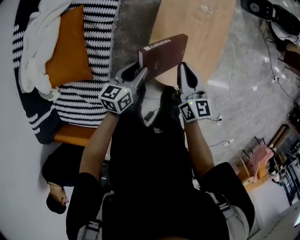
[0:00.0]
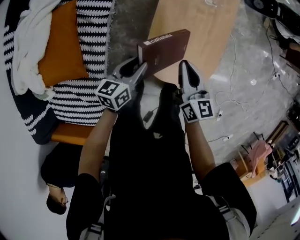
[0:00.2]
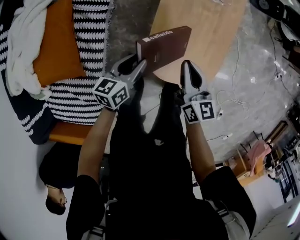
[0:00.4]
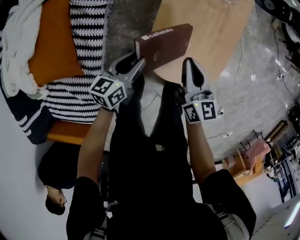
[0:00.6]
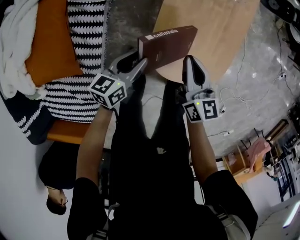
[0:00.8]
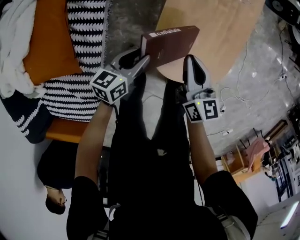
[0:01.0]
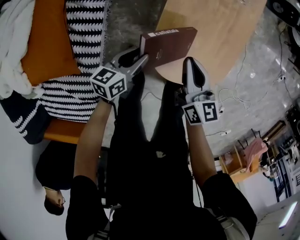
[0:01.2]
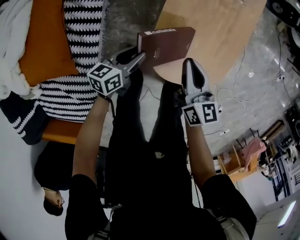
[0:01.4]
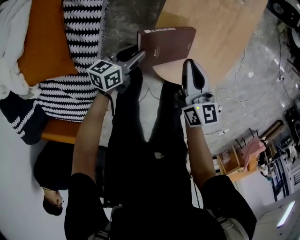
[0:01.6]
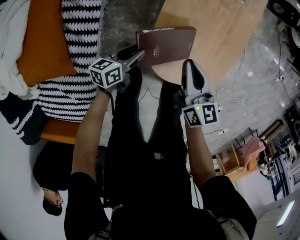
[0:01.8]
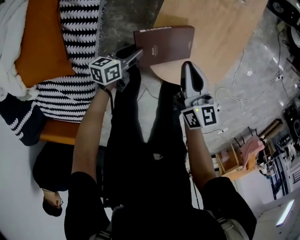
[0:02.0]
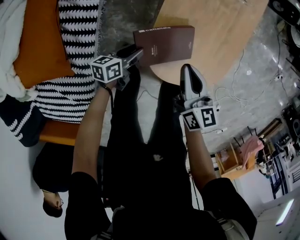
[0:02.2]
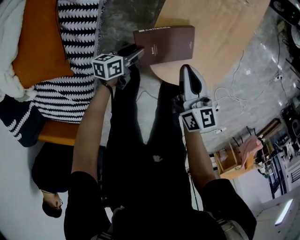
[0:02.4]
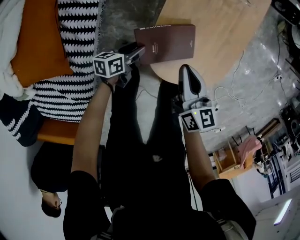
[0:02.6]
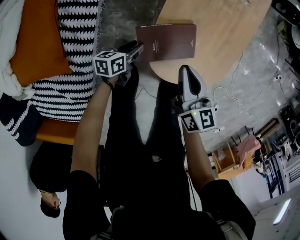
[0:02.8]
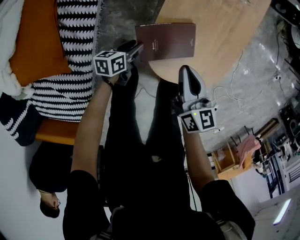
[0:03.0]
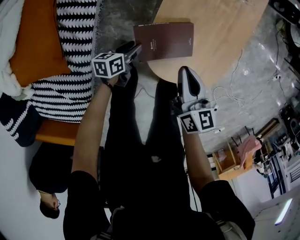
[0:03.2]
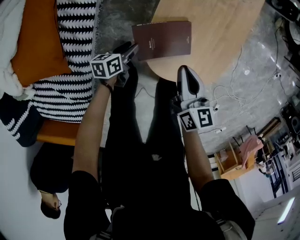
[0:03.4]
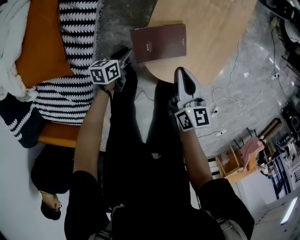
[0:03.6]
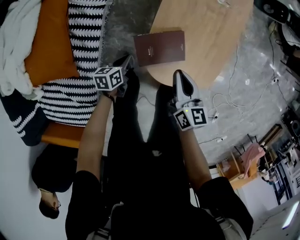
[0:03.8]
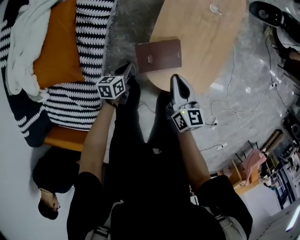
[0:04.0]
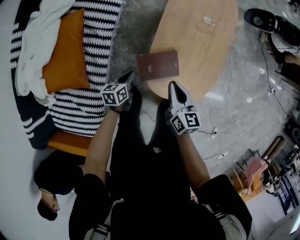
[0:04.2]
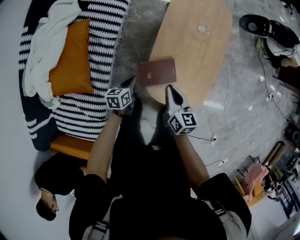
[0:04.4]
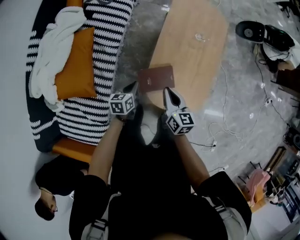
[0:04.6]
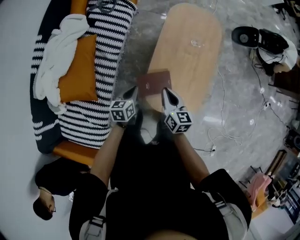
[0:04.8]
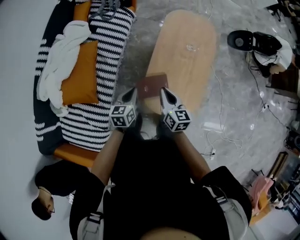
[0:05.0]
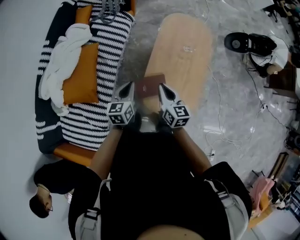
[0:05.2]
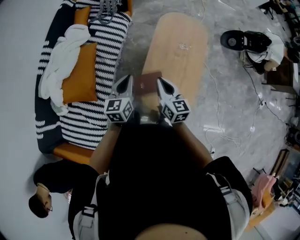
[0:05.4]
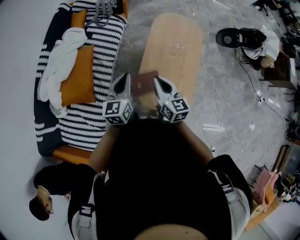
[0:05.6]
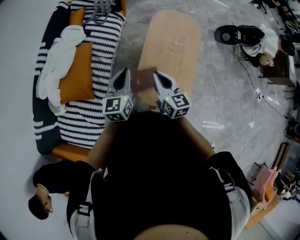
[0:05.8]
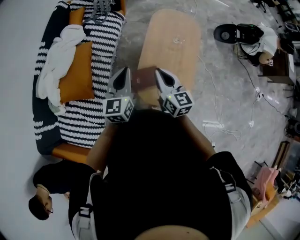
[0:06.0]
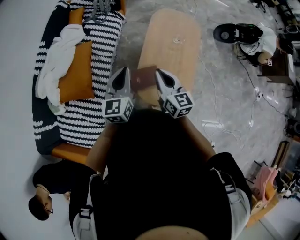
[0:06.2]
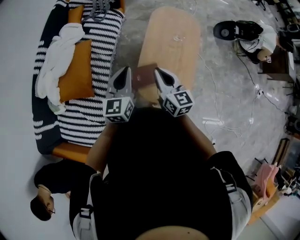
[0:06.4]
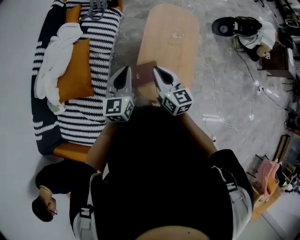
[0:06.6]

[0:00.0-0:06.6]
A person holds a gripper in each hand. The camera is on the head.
0:00.0 to 0:01.6: The two grippers go approximately 20 cm downward.
0:01.6 to 0:03.2: The right gripper travels backward by roughly 5 cm, while the left gripper goes some 10 cm downward.
0:03.2 to 0:05.0: The left gripper is displaced upward by about 40 cm, rotates some 40 degrees, and closes; the right gripper moves upward, approximately 20 cm.
0:05.0 to 0:06.6: The grippers both shift upward by about 15 cm. The left gripper rotates roughly 30 degrees.

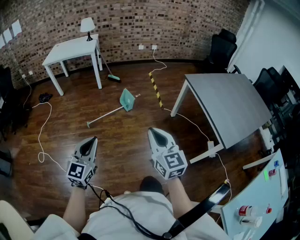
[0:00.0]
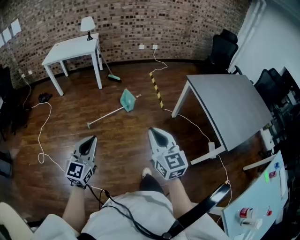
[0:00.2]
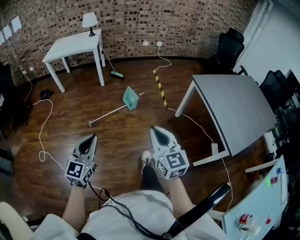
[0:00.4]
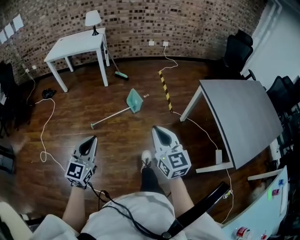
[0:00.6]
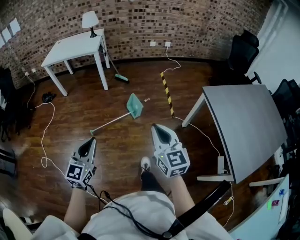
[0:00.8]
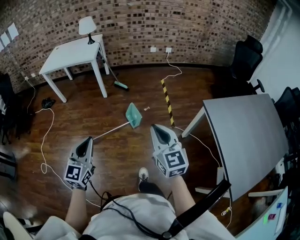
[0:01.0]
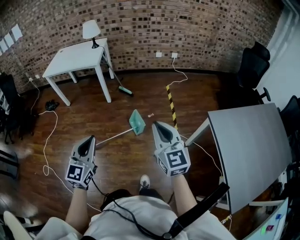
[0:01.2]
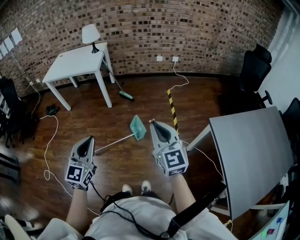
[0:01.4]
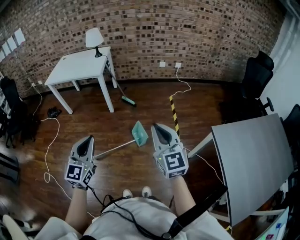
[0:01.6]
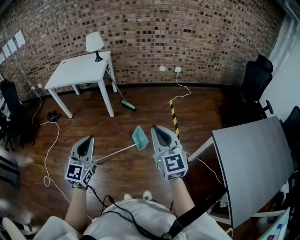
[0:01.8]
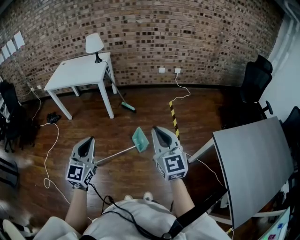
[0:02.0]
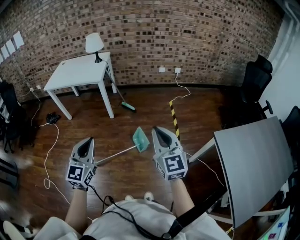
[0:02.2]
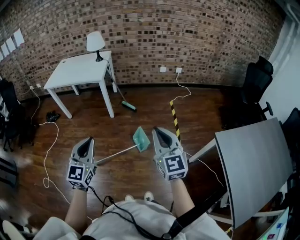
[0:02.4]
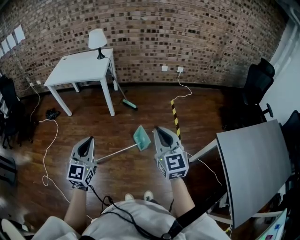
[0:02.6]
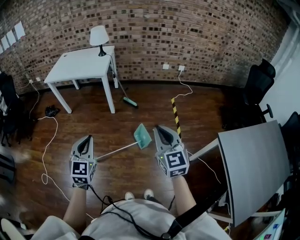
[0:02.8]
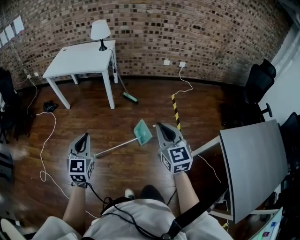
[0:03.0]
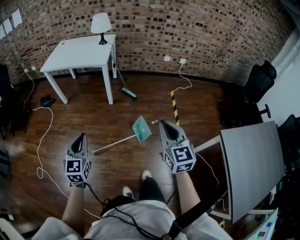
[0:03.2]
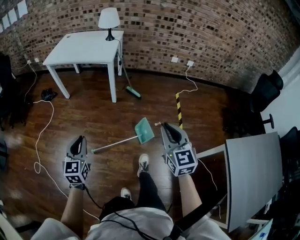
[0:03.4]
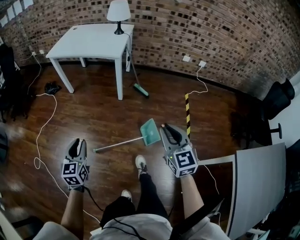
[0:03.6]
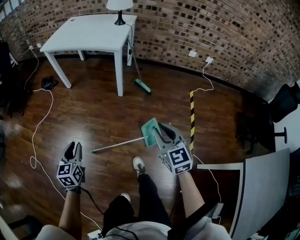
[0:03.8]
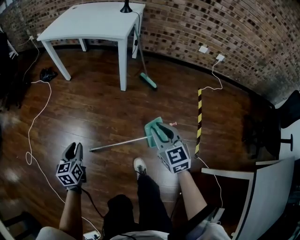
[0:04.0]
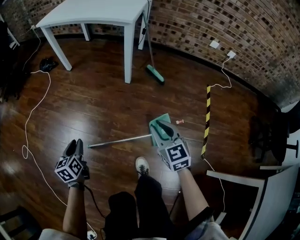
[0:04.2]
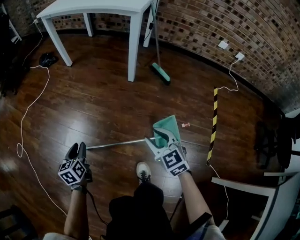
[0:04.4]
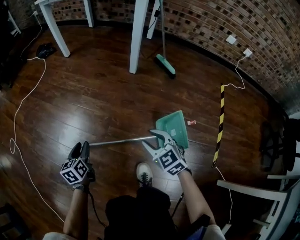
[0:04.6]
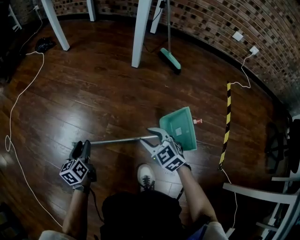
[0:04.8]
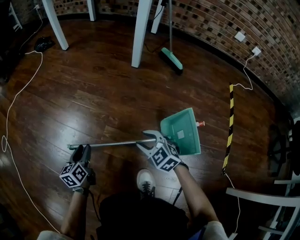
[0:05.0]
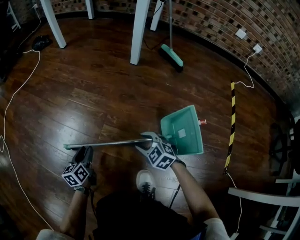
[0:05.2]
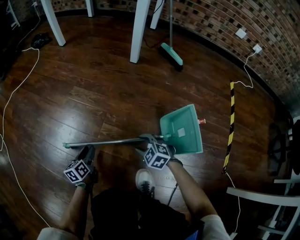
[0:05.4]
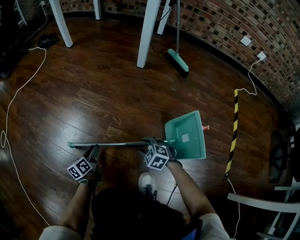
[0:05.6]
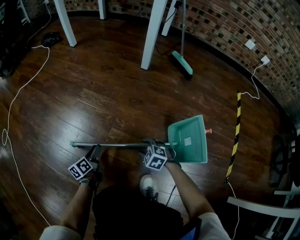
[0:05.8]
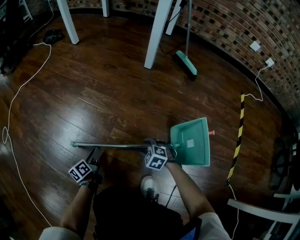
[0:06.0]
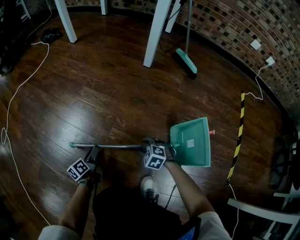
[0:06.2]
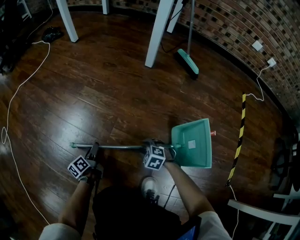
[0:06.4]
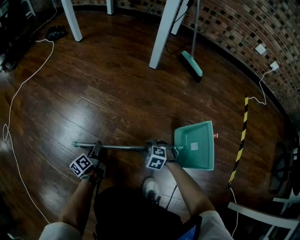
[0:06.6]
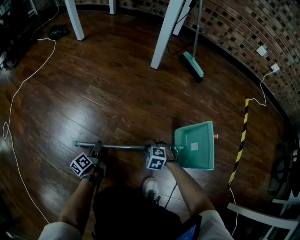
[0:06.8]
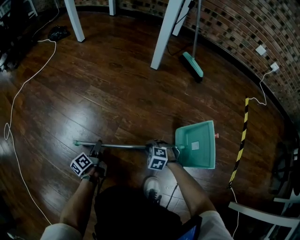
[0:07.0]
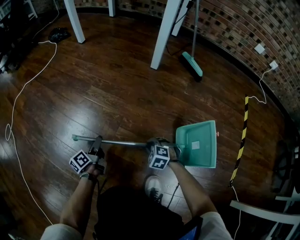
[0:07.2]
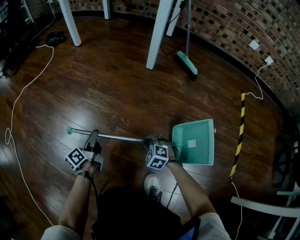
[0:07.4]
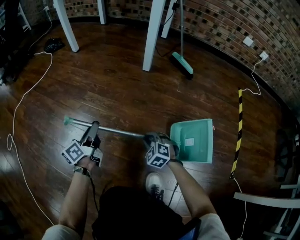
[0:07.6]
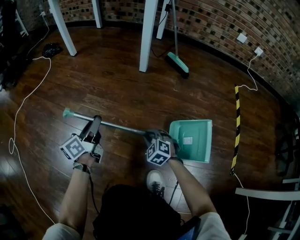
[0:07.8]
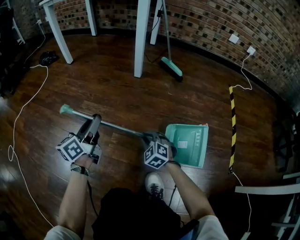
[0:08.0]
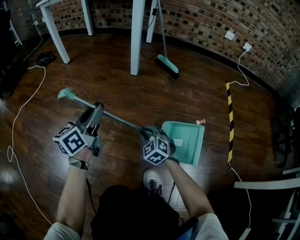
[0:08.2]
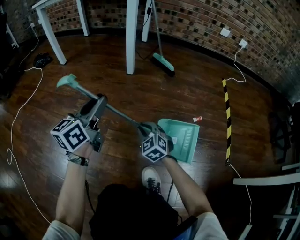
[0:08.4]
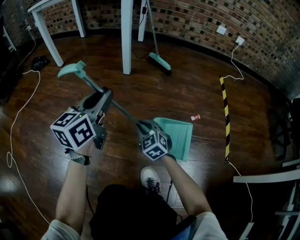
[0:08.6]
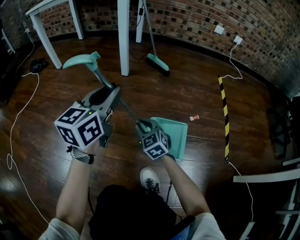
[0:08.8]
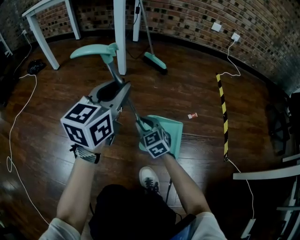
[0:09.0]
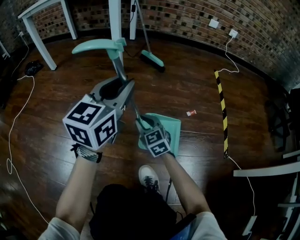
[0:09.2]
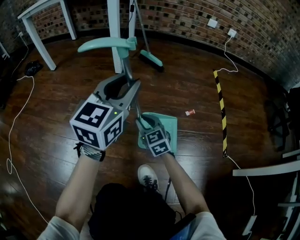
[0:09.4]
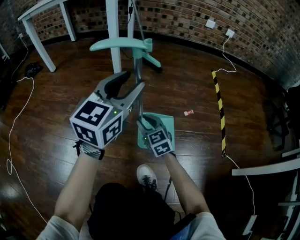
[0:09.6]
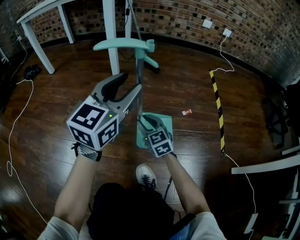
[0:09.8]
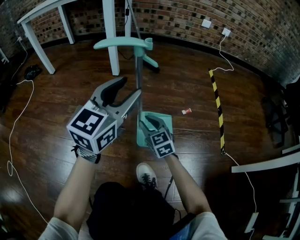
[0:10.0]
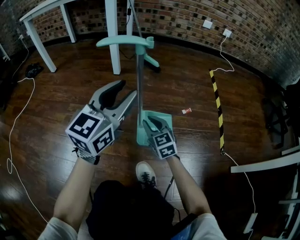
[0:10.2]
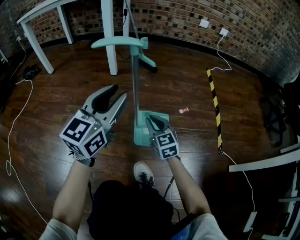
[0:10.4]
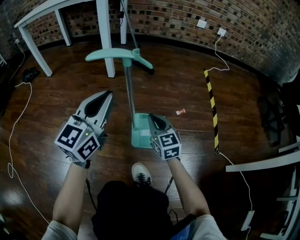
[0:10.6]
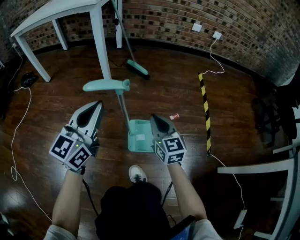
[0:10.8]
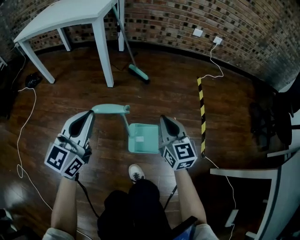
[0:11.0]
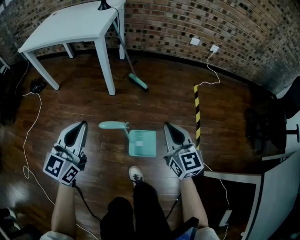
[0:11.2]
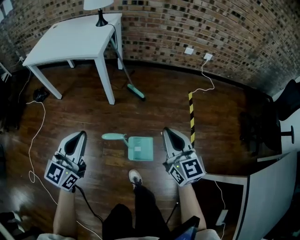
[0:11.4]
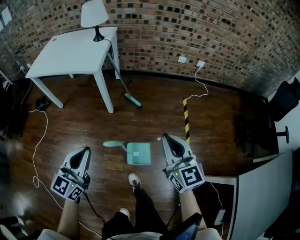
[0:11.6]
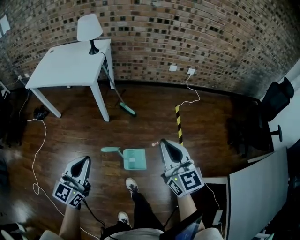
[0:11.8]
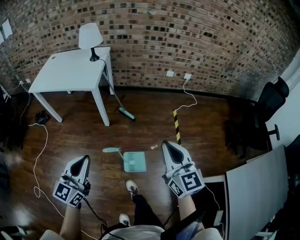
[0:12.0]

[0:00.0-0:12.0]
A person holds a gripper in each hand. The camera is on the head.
0:00.0 to 0:01.6: The pair of grippers is taken forward, roughly 50 cm.
0:01.6 to 0:03.0: The right gripper is displaced to the left and forward by about 10 cm; the left gripper travels to the left, forward and downward by approximately 15 cm.
0:03.0 to 0:04.4: The grippers both shift downward by roughly 60 cm. The left gripper rolls counterclockwise, seen from behind, by about 40 degrees, and opens. Meanwhile the right gripper turns by about 40 degrees, and opens its fingers.
0:04.4 to 0:06.0: The two grippers go some 40 cm downward. The left gripper swivels roughly 40 degrees. Meanwhile the right gripper points its fingers some 30 degrees further downward.
0:06.0 to 0:07.6: The left gripper shifts roughly 20 cm upward and forward, changes its angle by roughly 30 degrees, and closes; the right gripper travels upward by roughly 5 cm, and closes.
0:07.6 to 0:09.0: The left gripper shifts some 35 cm upward and to the right, and rotates around the line of its fingers by about 50 degrees, clockwise from behind, while the right gripper moves upward and to the right, about 15 cm, and swivels about 40 degrees.
0:09.0 to 0:10.4: The left gripper heads backward, covering about 5 cm. Meanwhile the right gripper goes roughly 10 cm to the right.
0:10.4 to 0:12.0: The left gripper is displaced upward by about 50 cm, and closes up, while the right gripper is displaced upward by about 80 cm, and swivels roughly 20 degrees.

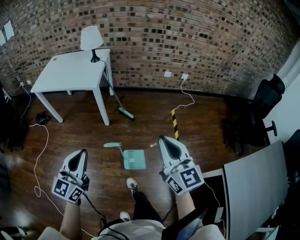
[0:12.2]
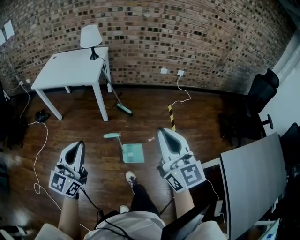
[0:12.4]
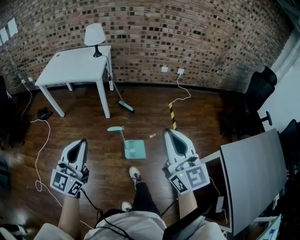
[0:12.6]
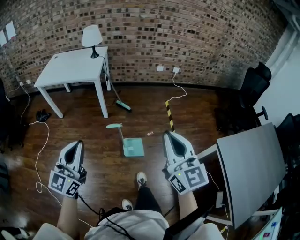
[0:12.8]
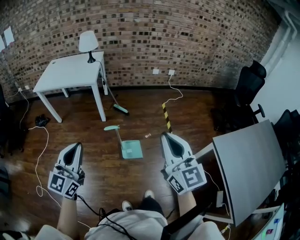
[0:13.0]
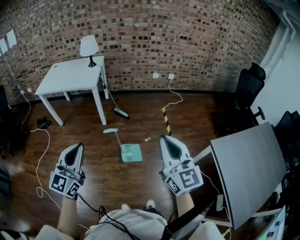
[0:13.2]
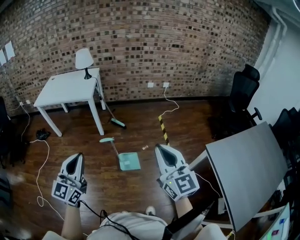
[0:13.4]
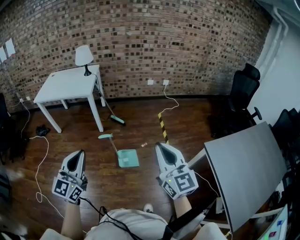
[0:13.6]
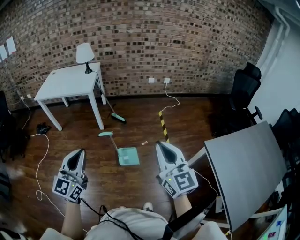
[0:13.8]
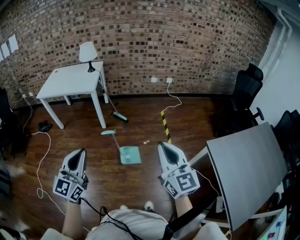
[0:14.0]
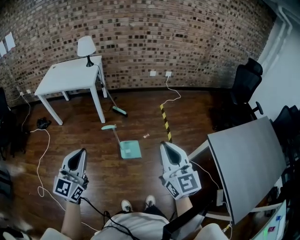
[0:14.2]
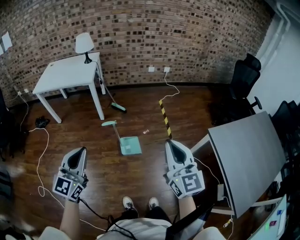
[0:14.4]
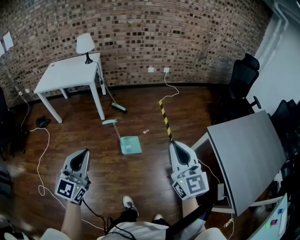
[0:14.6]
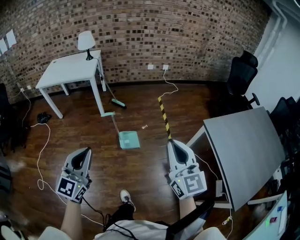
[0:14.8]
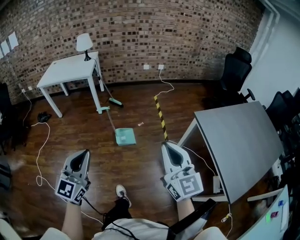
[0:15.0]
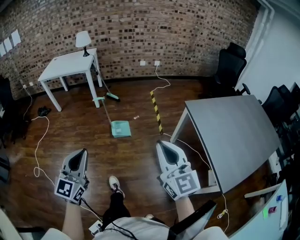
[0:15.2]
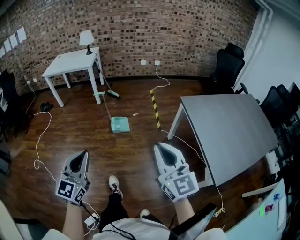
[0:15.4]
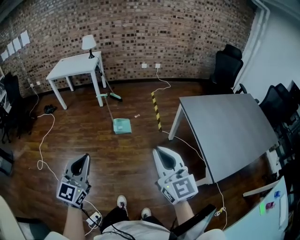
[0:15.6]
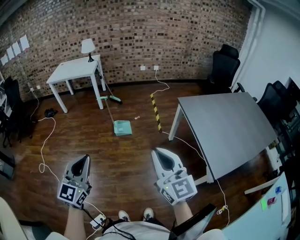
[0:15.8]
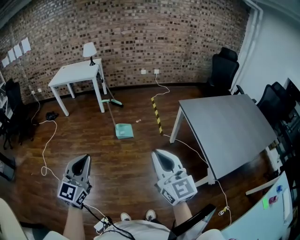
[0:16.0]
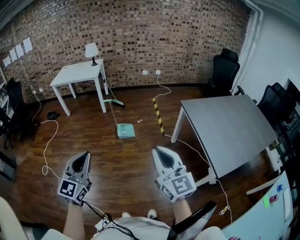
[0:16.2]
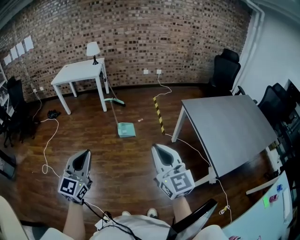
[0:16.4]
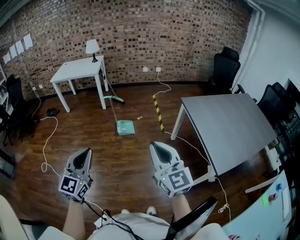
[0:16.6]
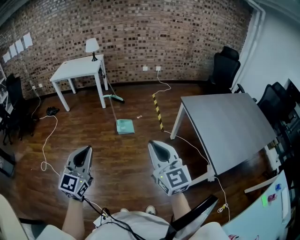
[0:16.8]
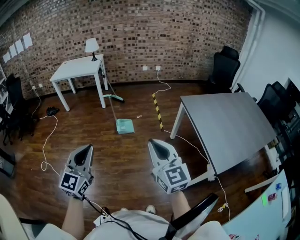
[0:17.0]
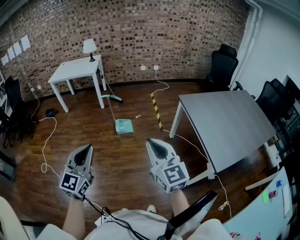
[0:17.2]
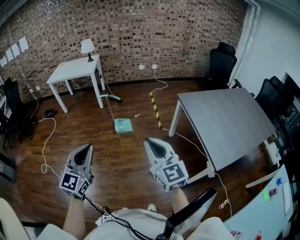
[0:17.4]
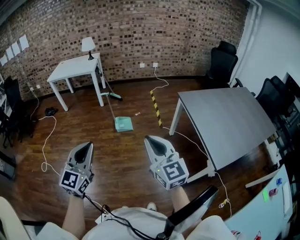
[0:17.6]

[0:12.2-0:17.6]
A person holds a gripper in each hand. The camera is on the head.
0:12.2 to 0:13.6: The grippers both shift backward by some 20 cm.
0:13.6 to 0:15.0: The two grippers go some 25 cm backward.
0:15.0 to 0:16.2: The two grippers go approximately 30 cm backward.
0:16.2 to 0:17.6: The grippers stay close to where they were, moving slightly.
